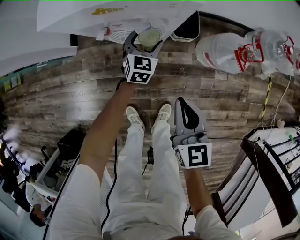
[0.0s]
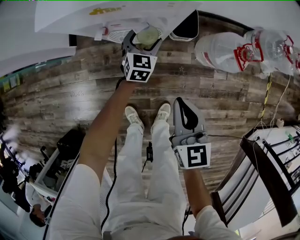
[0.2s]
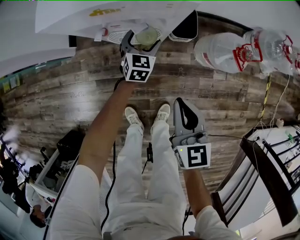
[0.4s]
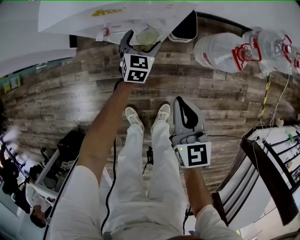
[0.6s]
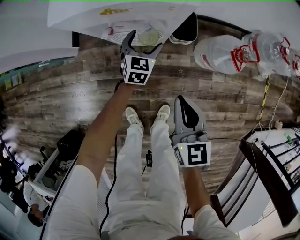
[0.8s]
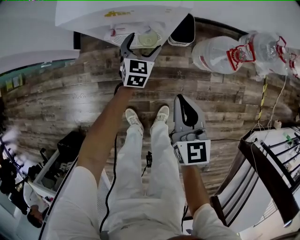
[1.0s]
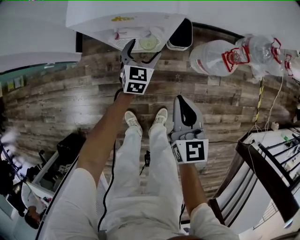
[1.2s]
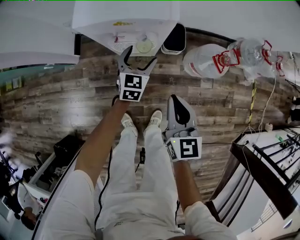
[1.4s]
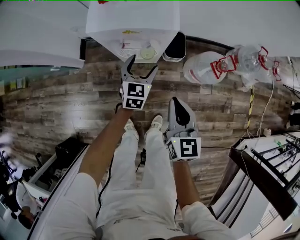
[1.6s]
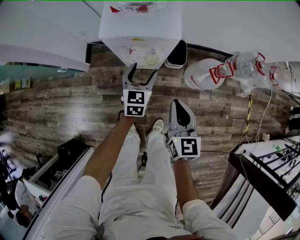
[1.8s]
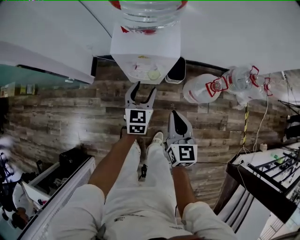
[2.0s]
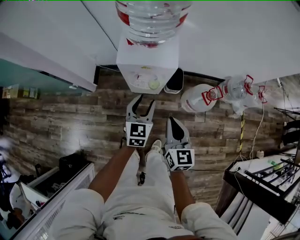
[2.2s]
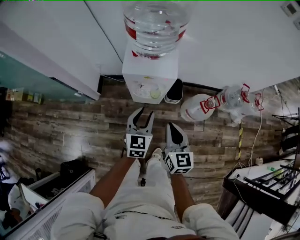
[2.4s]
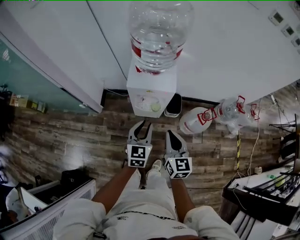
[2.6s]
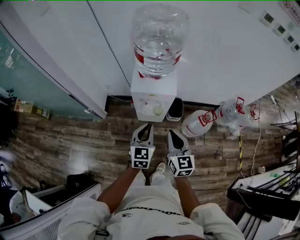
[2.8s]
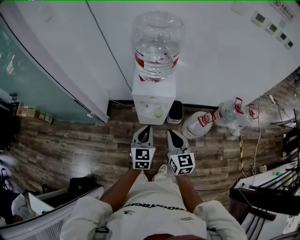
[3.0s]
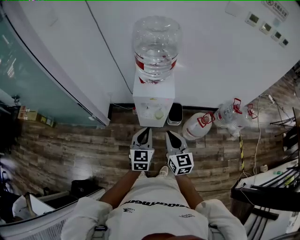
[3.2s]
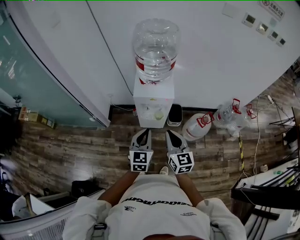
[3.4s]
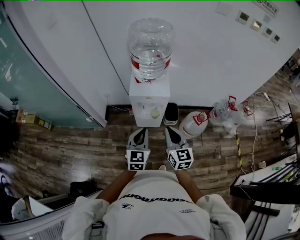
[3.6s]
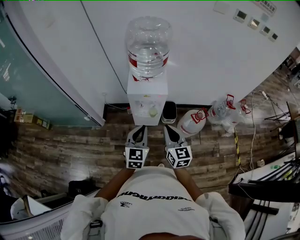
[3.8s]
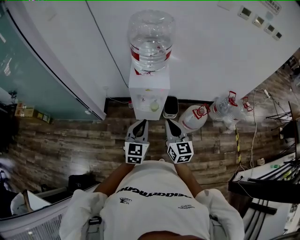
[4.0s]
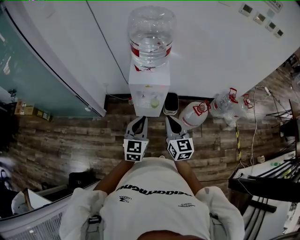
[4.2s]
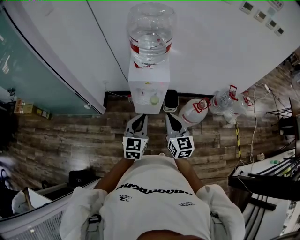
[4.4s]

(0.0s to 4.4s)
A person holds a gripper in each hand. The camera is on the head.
0.0s - 1.4s: Both grippers move upward, some 15 cm.
1.4s - 3.0s: The right gripper shifts roughly 30 cm upward, while the left gripper shifts approximately 50 cm upward and backward, and closes up.
3.0s - 4.4s: The left gripper moves backward, about 5 cm.

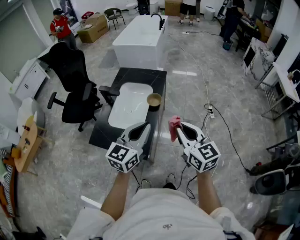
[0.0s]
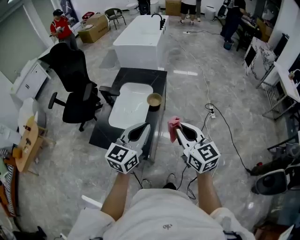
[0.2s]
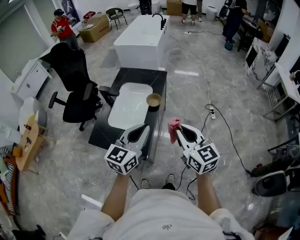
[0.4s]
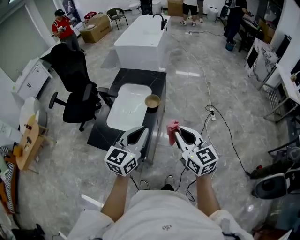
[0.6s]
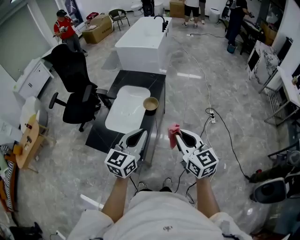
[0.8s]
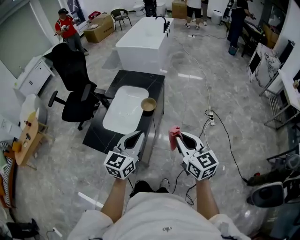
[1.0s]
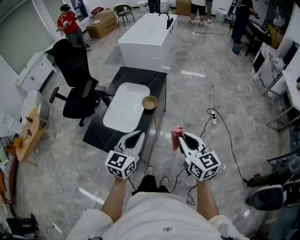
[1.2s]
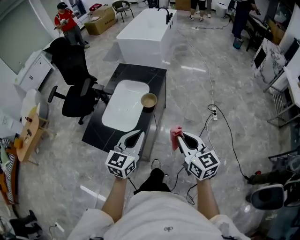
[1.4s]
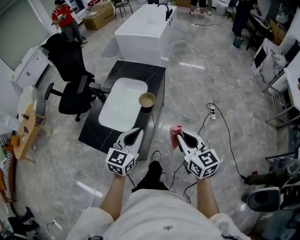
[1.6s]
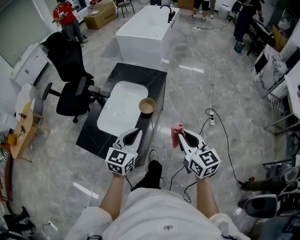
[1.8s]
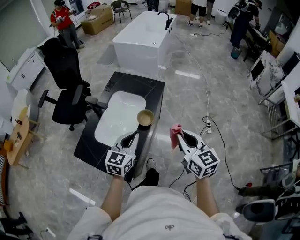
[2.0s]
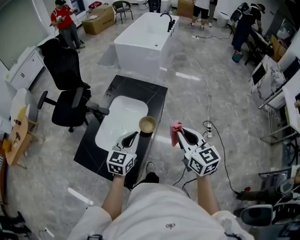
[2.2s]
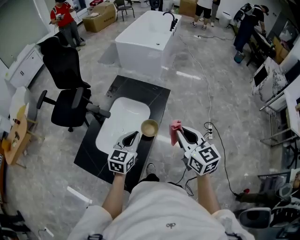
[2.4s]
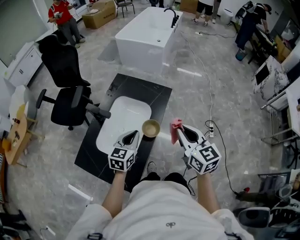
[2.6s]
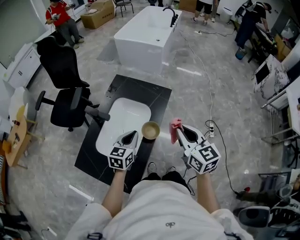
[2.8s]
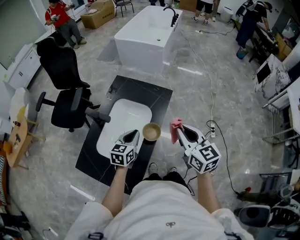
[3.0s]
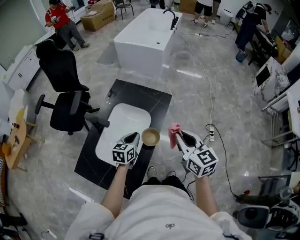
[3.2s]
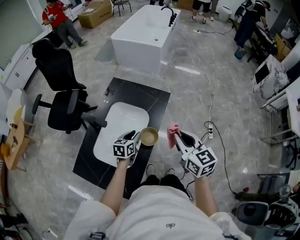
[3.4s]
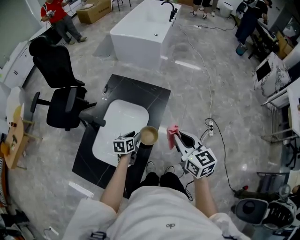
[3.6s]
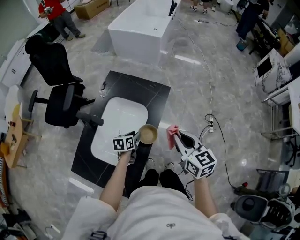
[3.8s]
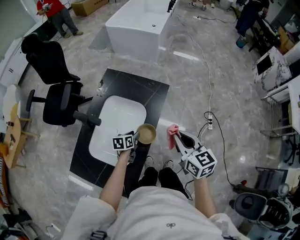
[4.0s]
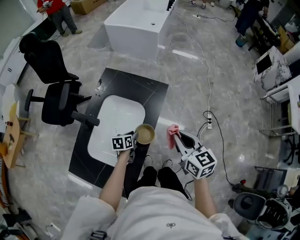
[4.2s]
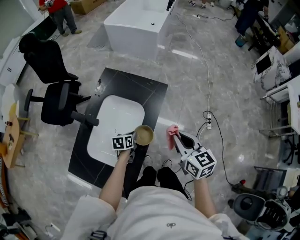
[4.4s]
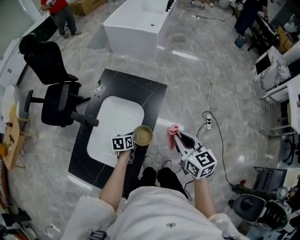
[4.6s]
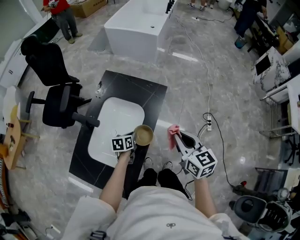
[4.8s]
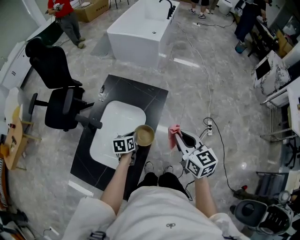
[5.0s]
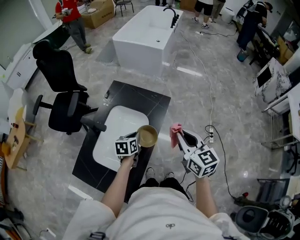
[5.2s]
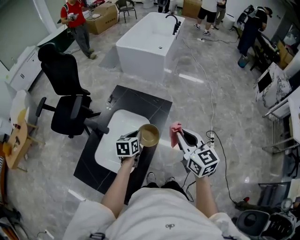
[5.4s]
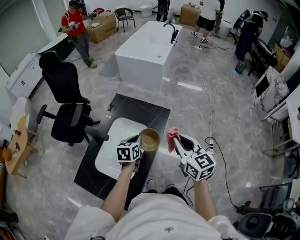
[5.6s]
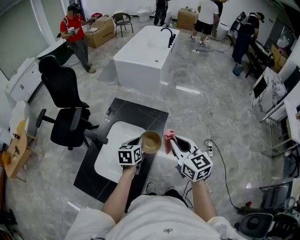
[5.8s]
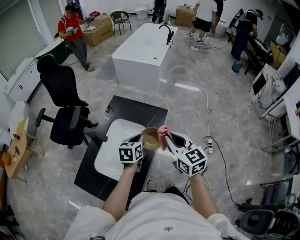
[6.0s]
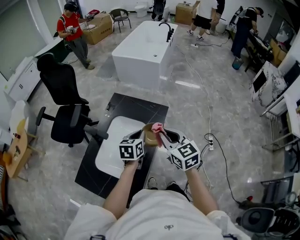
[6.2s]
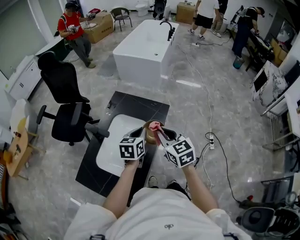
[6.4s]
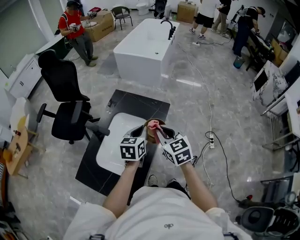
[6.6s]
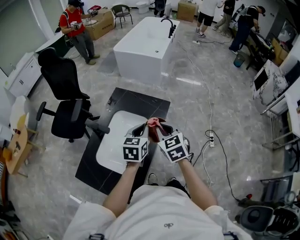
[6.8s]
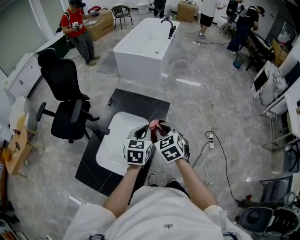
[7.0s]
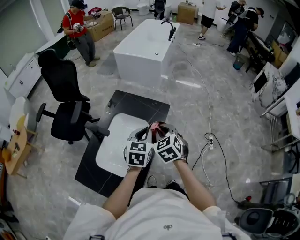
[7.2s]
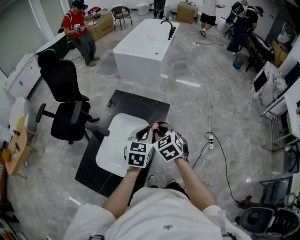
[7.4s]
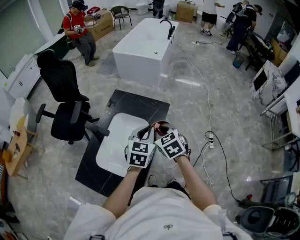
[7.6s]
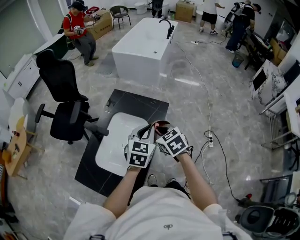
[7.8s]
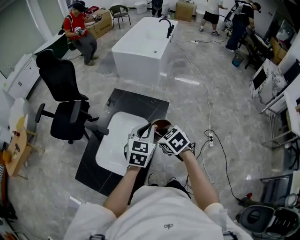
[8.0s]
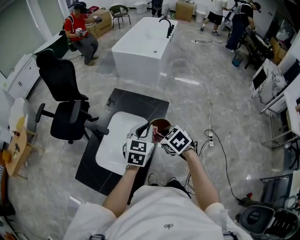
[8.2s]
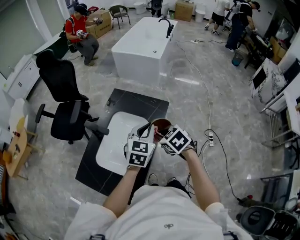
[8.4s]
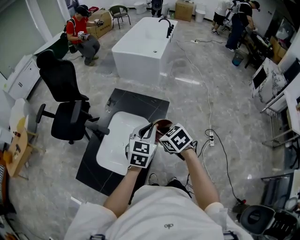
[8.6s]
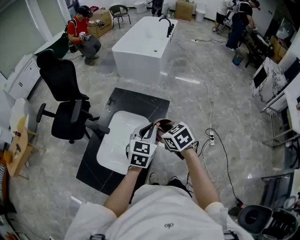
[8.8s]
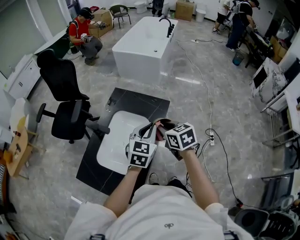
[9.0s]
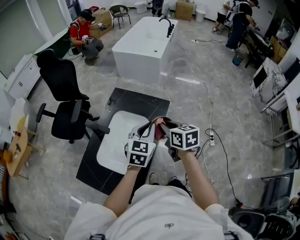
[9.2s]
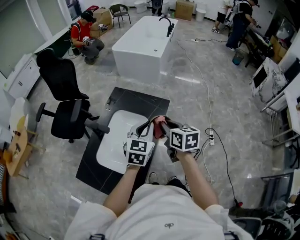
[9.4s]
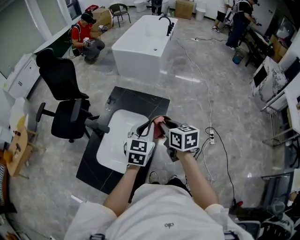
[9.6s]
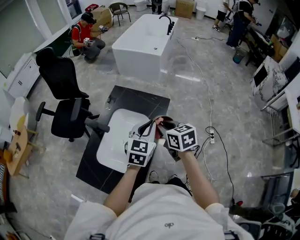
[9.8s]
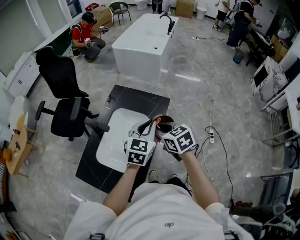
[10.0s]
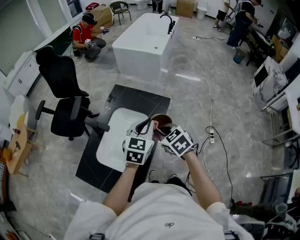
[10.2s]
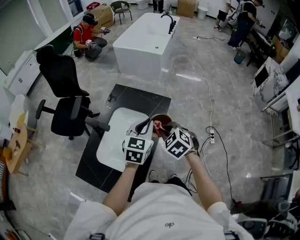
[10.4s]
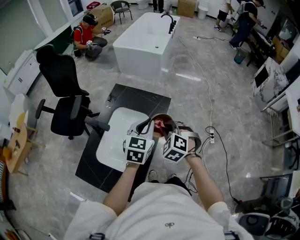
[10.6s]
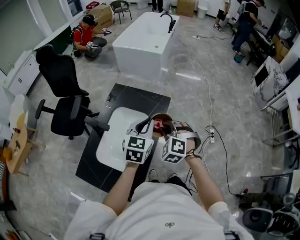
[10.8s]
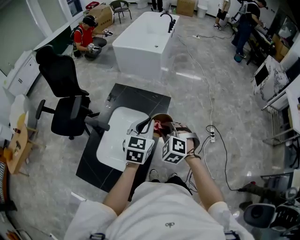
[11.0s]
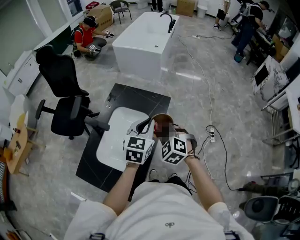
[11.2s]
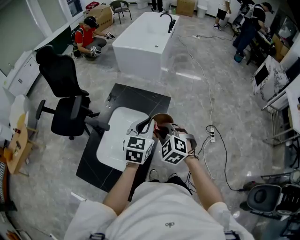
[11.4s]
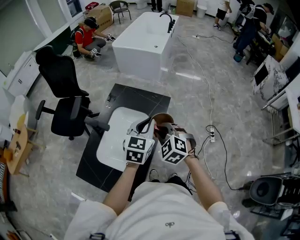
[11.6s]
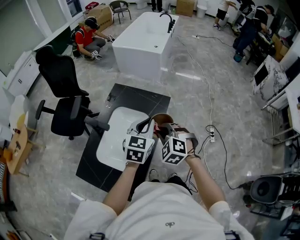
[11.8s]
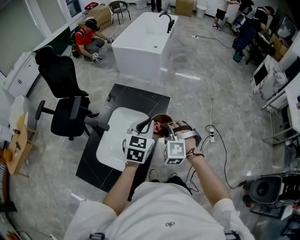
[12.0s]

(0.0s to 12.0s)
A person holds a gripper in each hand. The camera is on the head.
0.0s - 1.6s: The right gripper heads to the right, downward and forward, covering some 15 cm; the left gripper goes some 10 cm downward, forward and to the right.
1.6s - 3.0s: The right gripper heads forward, covering some 25 cm, while the left gripper heads forward and downward, covering some 30 cm.
3.0s - 4.4s: The left gripper goes roughly 20 cm downward, rotates some 30 degrees, and opens, then closes again. The right gripper goes roughly 10 cm downward.
4.4s - 6.0s: The right gripper is displaced upward by approximately 10 cm; the left gripper heads upward, covering approximately 20 cm, and turns by approximately 20 degrees.
6.0s - 7.6s: The right gripper goes approximately 10 cm downward and to the left, and swivels approximately 30 degrees, while the left gripper is displaced upward by about 5 cm, and rotates some 20 degrees.
7.6s - 9.0s: The right gripper changes its angle by about 20 degrees.
9.0s - 10.4s: The right gripper rotates approximately 40 degrees.
10.4s - 12.0s: The right gripper changes its angle by roughly 40 degrees.

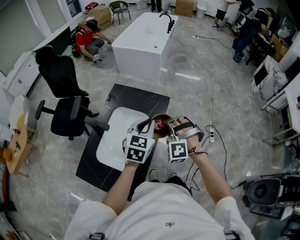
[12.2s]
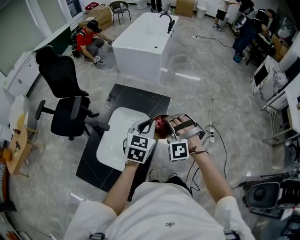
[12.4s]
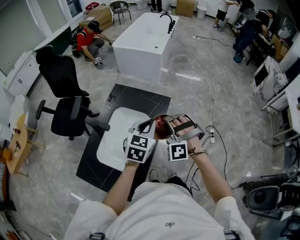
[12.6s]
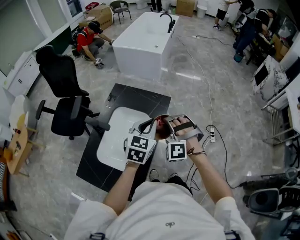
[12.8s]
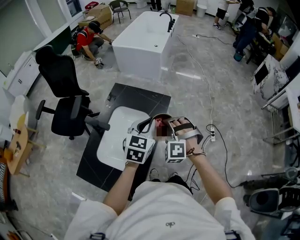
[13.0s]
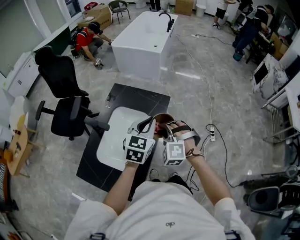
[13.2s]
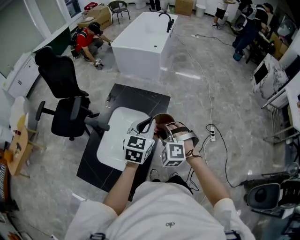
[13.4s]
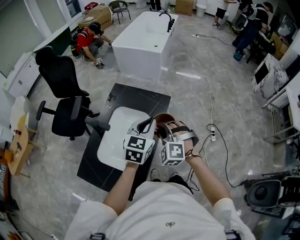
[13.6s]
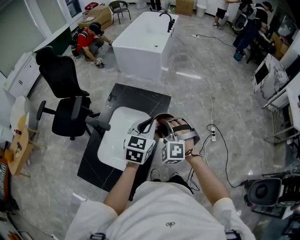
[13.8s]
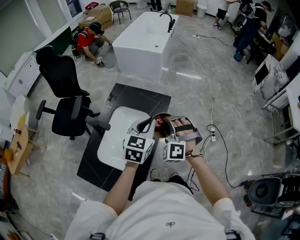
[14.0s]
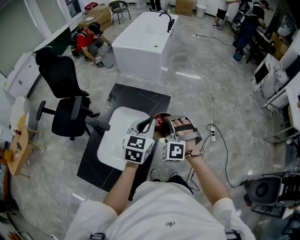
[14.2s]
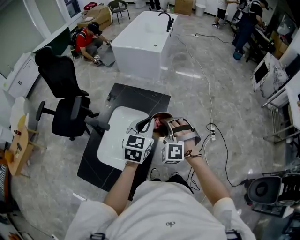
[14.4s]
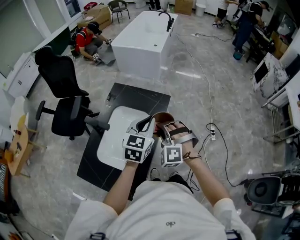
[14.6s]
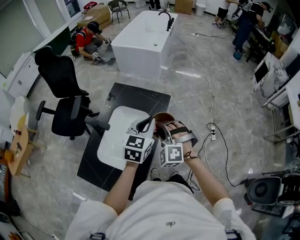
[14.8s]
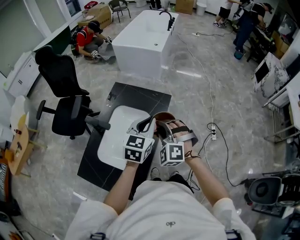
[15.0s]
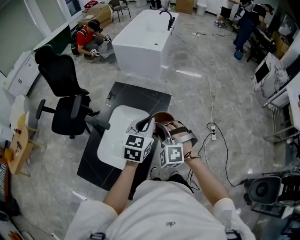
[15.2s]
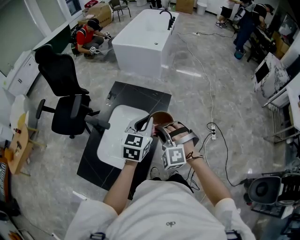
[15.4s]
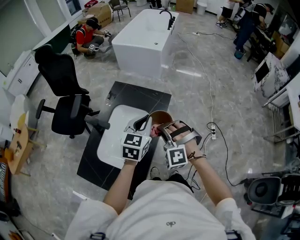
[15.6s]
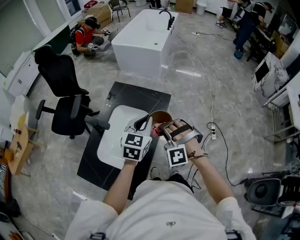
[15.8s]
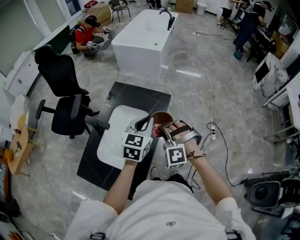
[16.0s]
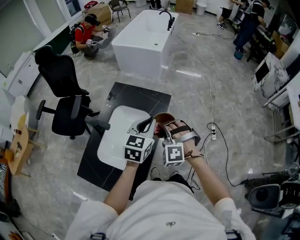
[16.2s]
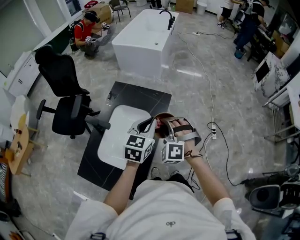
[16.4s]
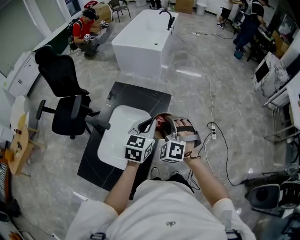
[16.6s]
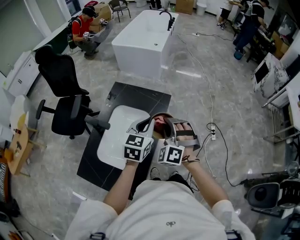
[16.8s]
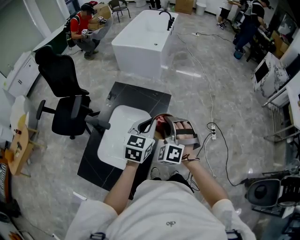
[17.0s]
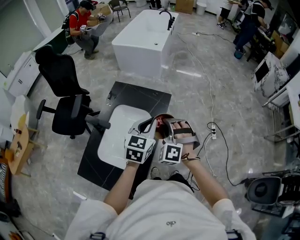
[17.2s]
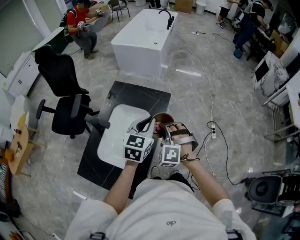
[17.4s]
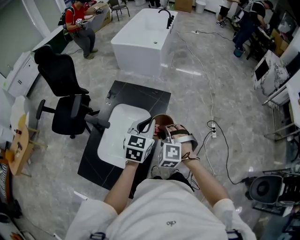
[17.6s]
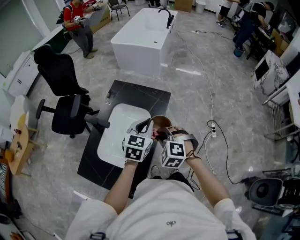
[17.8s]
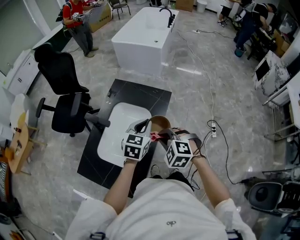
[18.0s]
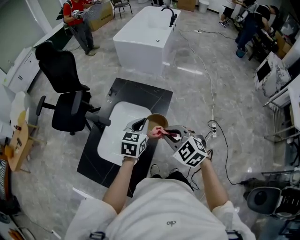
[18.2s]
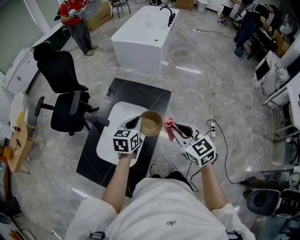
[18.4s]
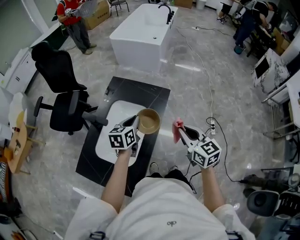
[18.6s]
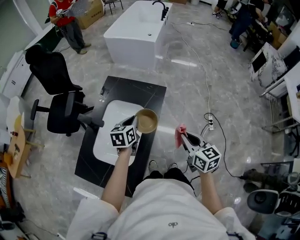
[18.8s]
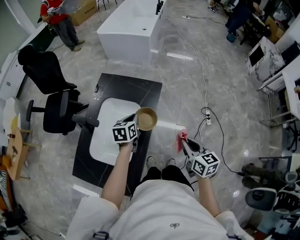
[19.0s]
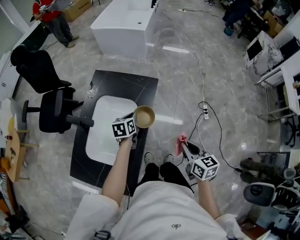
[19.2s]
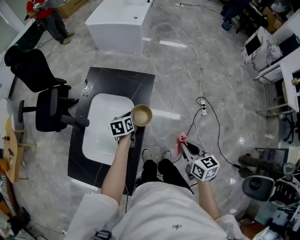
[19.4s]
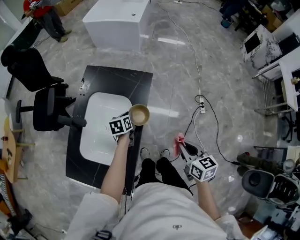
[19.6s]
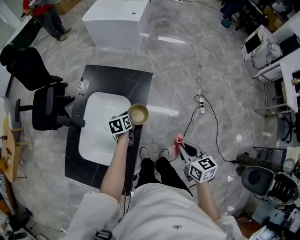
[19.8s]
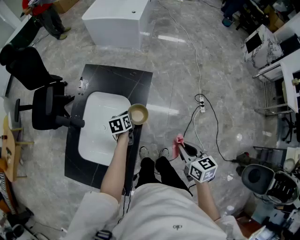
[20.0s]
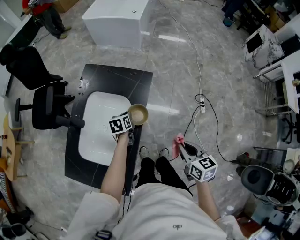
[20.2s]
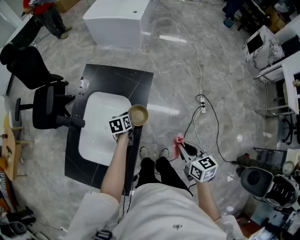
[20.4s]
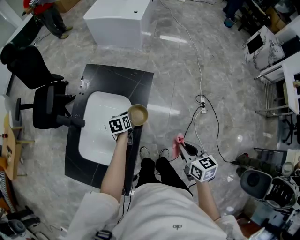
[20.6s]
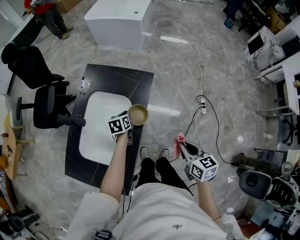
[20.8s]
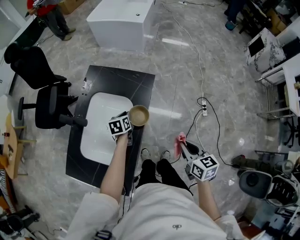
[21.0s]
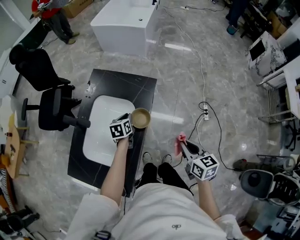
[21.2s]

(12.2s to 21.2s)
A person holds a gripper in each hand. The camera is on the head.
13.8s - 15.2s: The grippers stay close to where they were, moving slightly.
15.2s - 16.6s: The right gripper ends up about 5 cm from where it was.
16.6s - 18.2s: The left gripper goes approximately 5 cm downward; the right gripper shifts some 5 cm backward, and turns by some 40 degrees.
18.2s - 19.8s: The left gripper goes approximately 20 cm downward, and swivels some 30 degrees, while the right gripper is displaced to the right and downward by some 20 cm, and rolls clockwise, seen from behind, by approximately 60 degrees.
19.8s - 21.2s: The grippers stay close to where they were, moving slightly.
